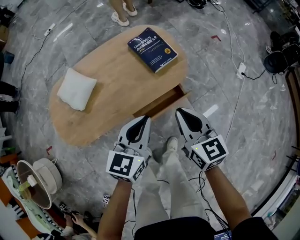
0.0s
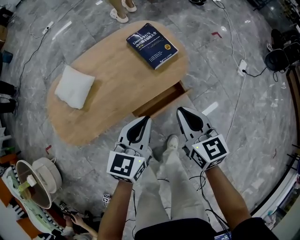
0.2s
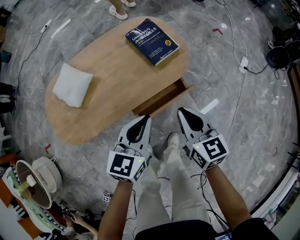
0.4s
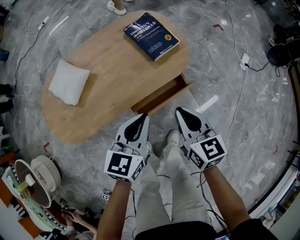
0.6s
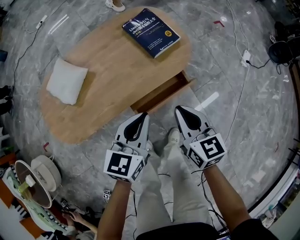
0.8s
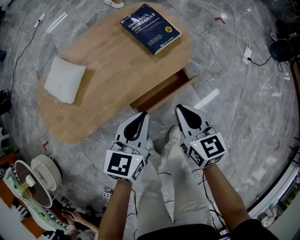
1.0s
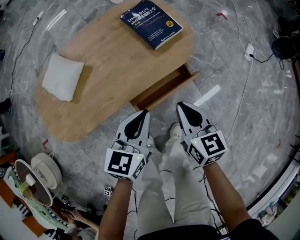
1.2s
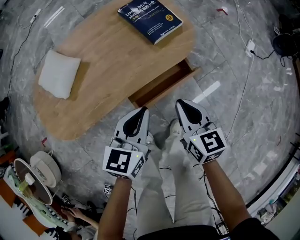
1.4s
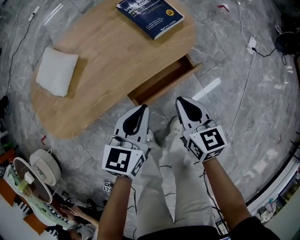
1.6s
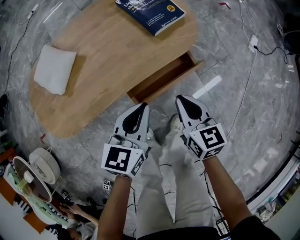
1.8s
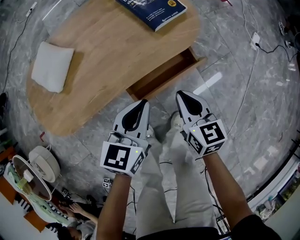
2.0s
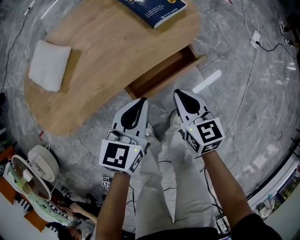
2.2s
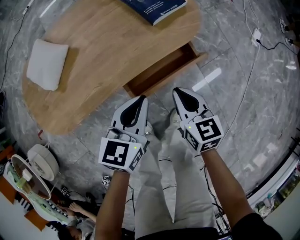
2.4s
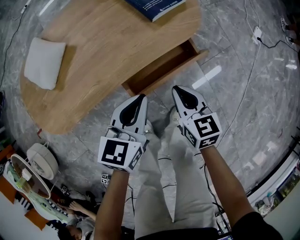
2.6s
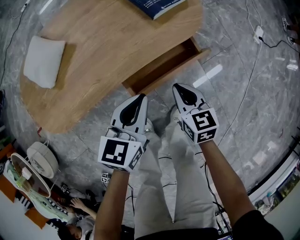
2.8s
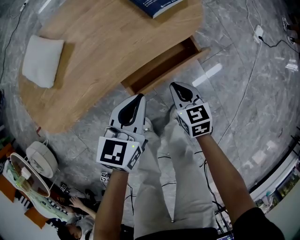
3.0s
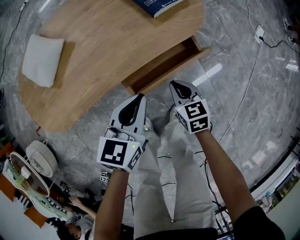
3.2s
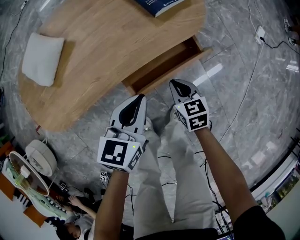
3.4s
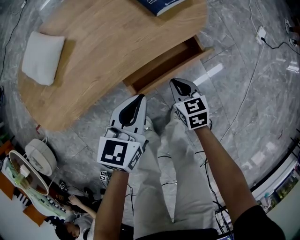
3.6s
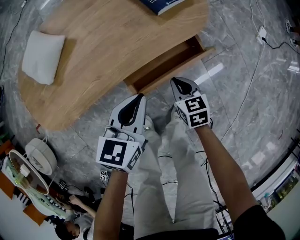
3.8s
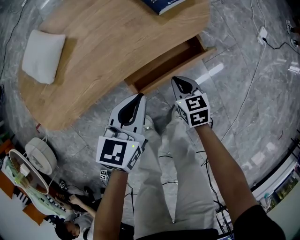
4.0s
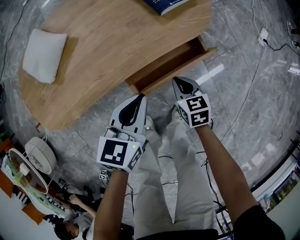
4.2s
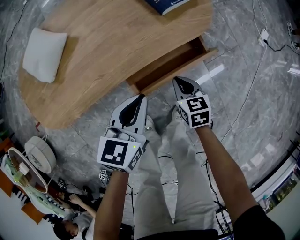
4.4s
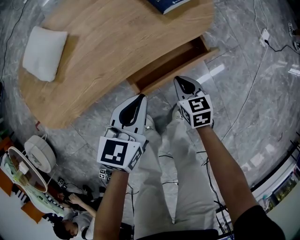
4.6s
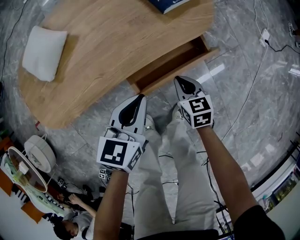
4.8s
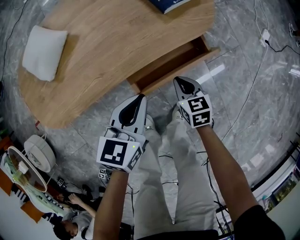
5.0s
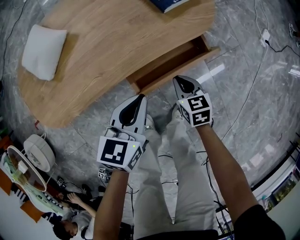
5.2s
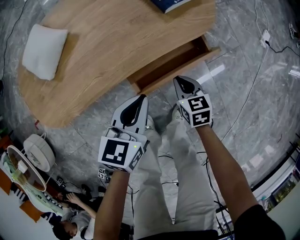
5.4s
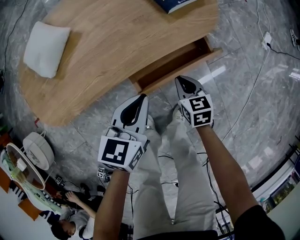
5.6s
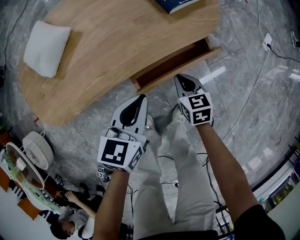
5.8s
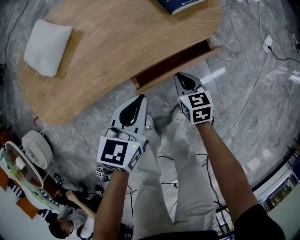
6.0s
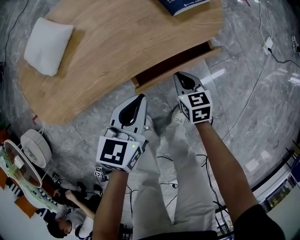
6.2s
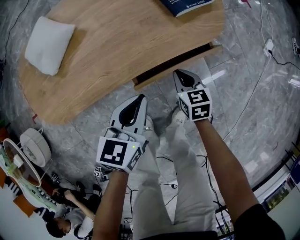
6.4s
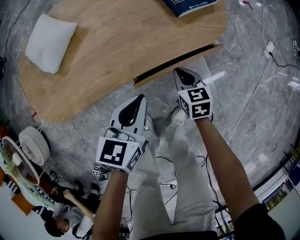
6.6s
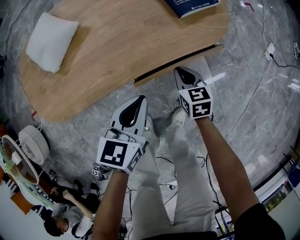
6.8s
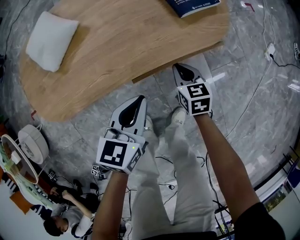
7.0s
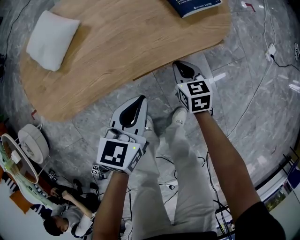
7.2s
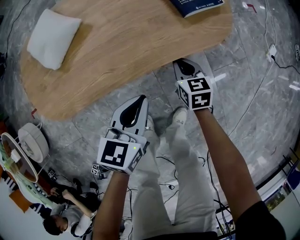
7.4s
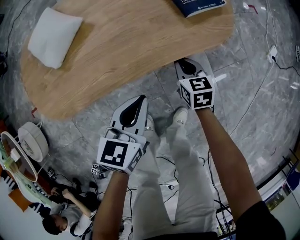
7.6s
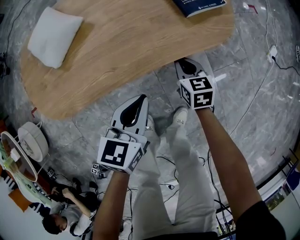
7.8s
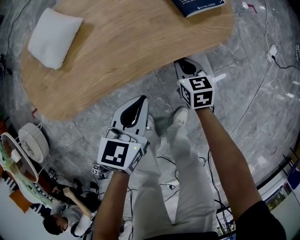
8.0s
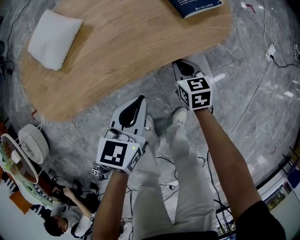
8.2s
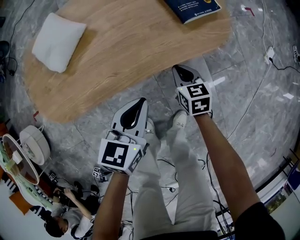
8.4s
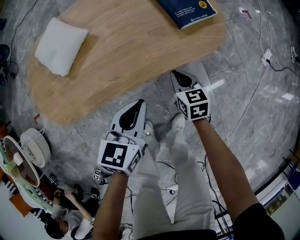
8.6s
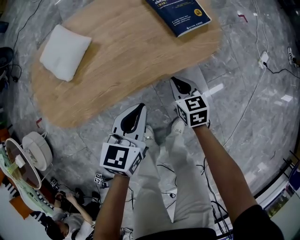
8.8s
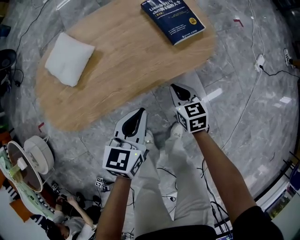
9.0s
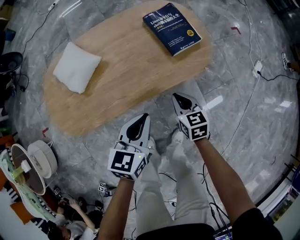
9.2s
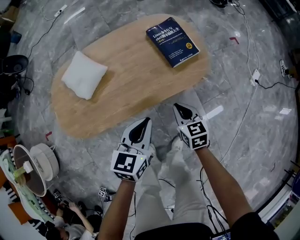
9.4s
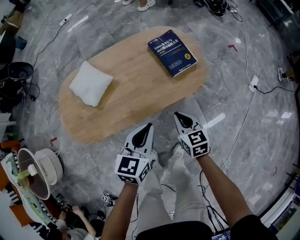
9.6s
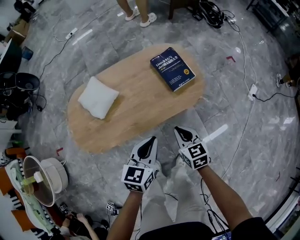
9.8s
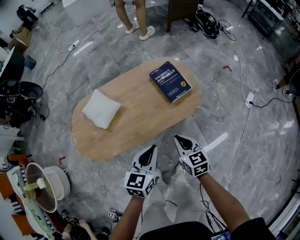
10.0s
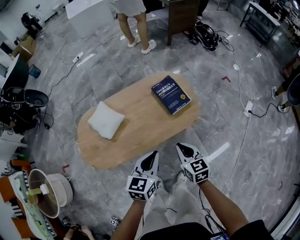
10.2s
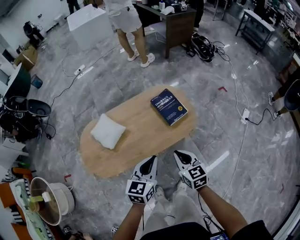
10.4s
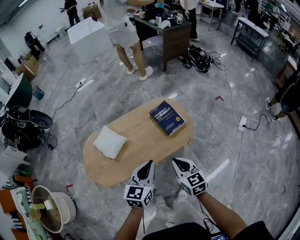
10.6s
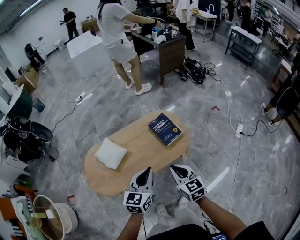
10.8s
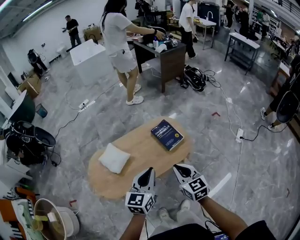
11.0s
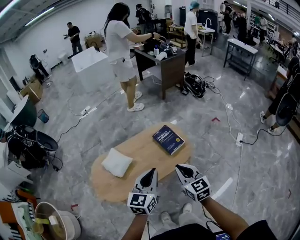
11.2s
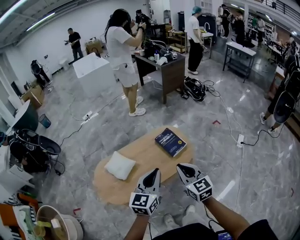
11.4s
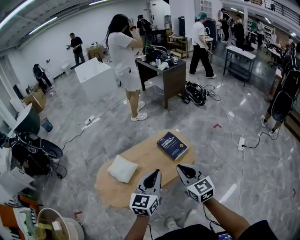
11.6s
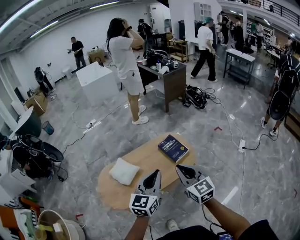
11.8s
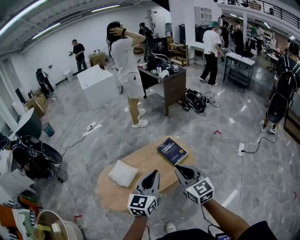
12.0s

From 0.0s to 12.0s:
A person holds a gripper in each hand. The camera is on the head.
From 0.0s to 1.6s: The grippers both shift downward by approximately 15 cm.
From 1.6s to 3.0s: The left gripper heads downward, covering roughly 5 cm; the right gripper travels downward by about 15 cm.
From 3.0s to 6.0s: The grippers move only a little.
From 6.0s to 7.6s: The right gripper is displaced forward by roughly 5 cm.
From 7.6s to 9.0s: The grippers both shift upward by some 10 cm.
From 9.0s to 10.4s: Both grippers travel together upward, some 25 cm.
From 10.4s to 12.0s: Both grippers travel together upward, about 20 cm. The right gripper turns by roughly 30 degrees; the left gripper rotates roughly 20 degrees.

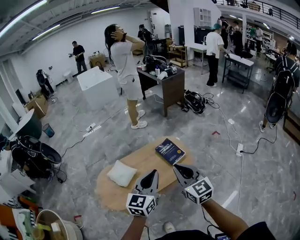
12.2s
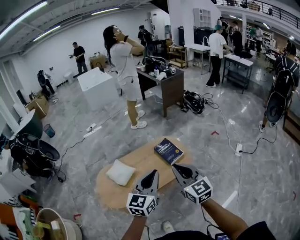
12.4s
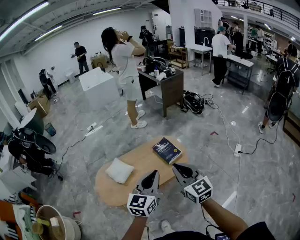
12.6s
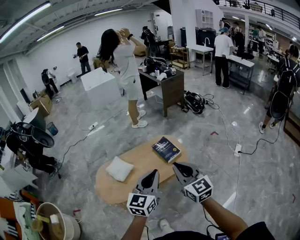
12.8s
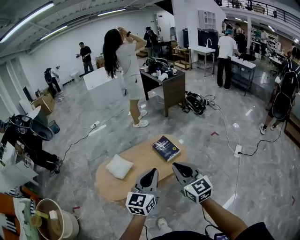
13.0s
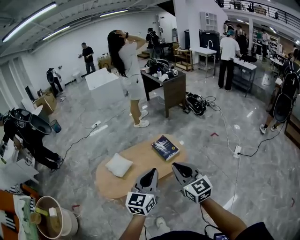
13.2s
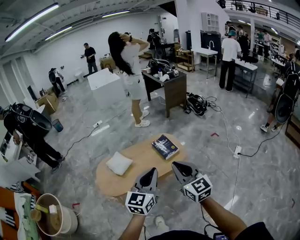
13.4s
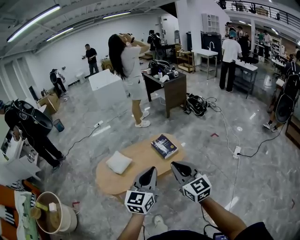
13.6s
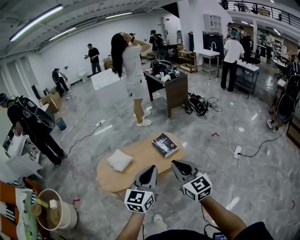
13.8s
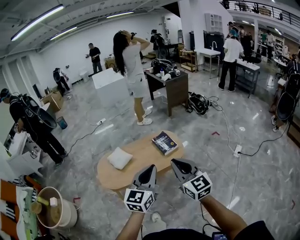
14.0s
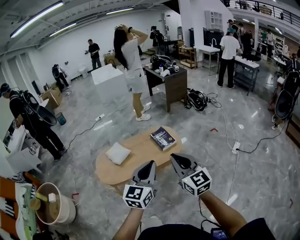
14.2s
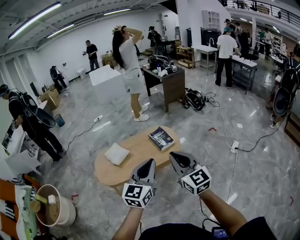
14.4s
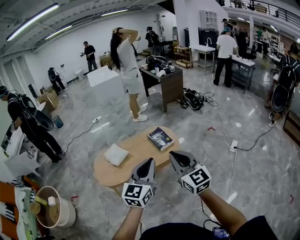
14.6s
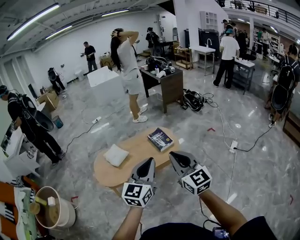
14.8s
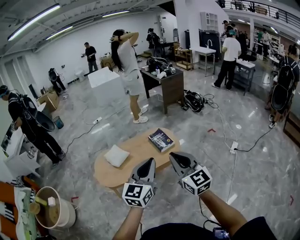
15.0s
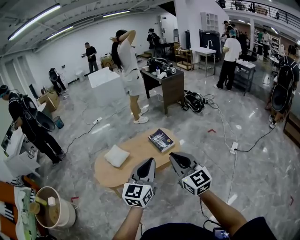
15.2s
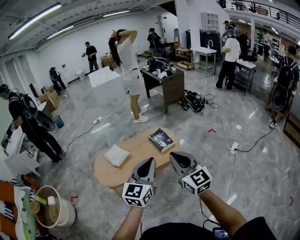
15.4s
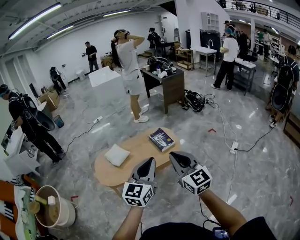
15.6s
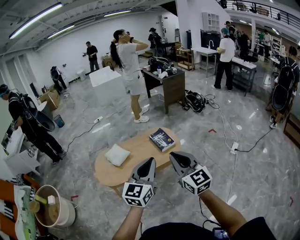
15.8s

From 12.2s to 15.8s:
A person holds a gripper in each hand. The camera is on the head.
From 12.2s to 14.0s: Both grippers travel together backward and to the right, about 20 cm.
From 14.0s to 15.8s: The grippers move only a little.

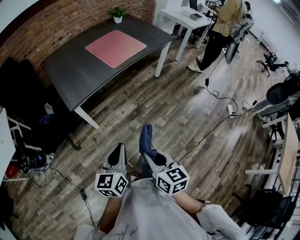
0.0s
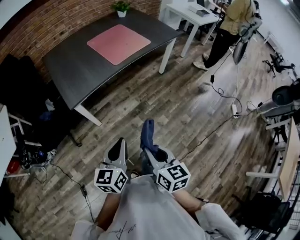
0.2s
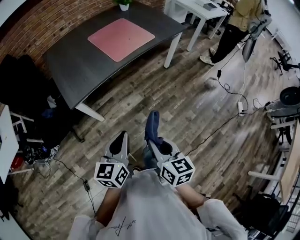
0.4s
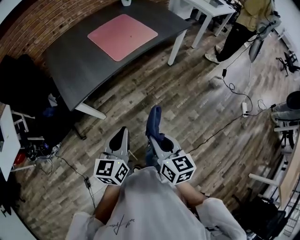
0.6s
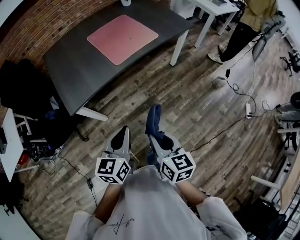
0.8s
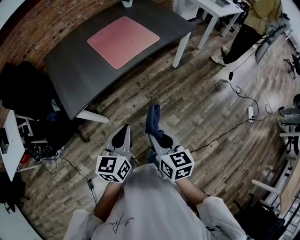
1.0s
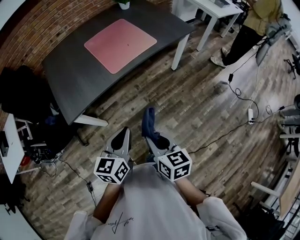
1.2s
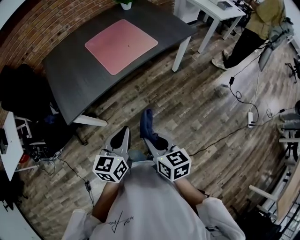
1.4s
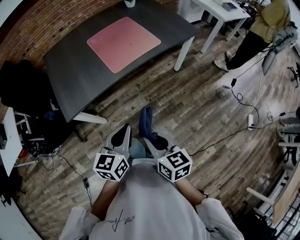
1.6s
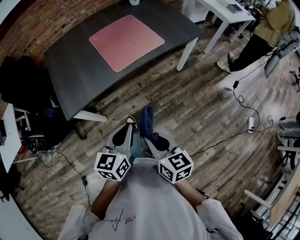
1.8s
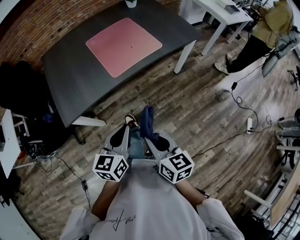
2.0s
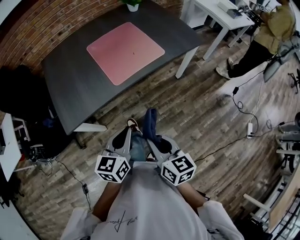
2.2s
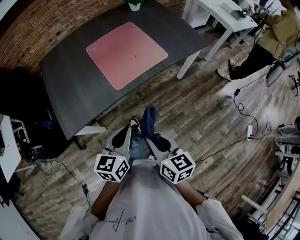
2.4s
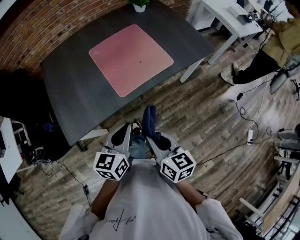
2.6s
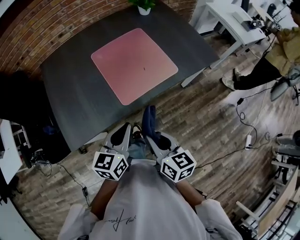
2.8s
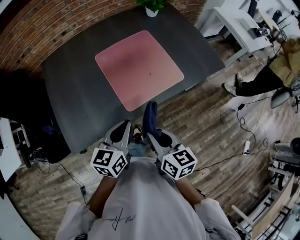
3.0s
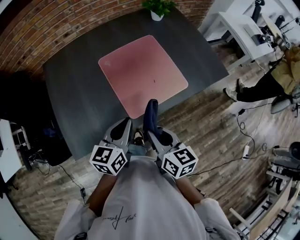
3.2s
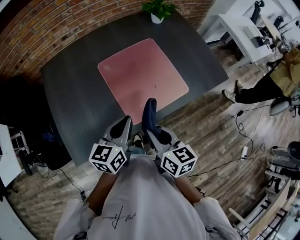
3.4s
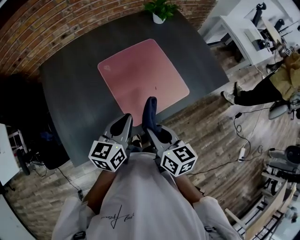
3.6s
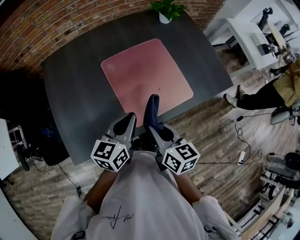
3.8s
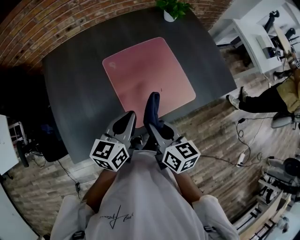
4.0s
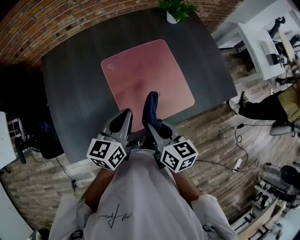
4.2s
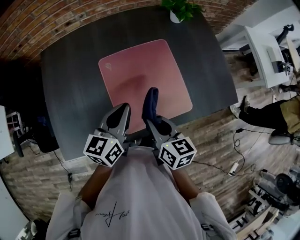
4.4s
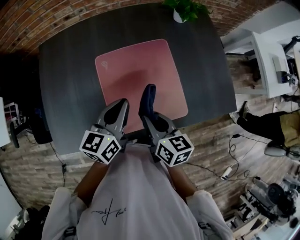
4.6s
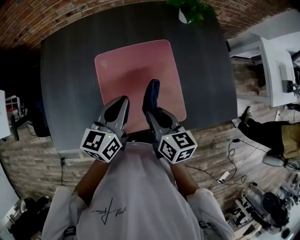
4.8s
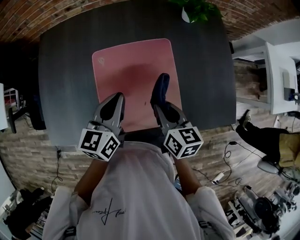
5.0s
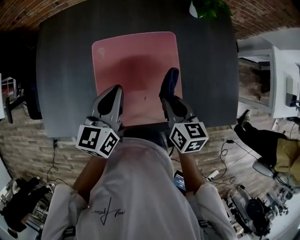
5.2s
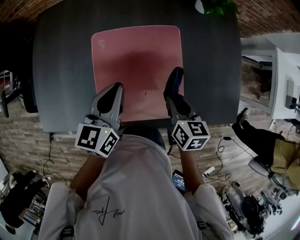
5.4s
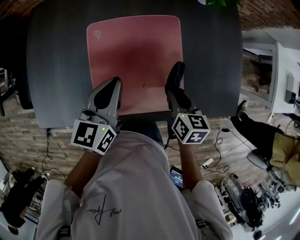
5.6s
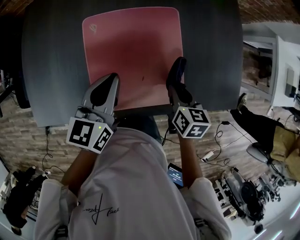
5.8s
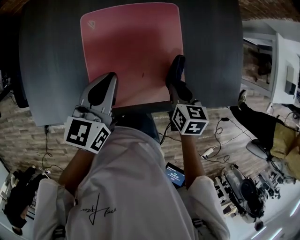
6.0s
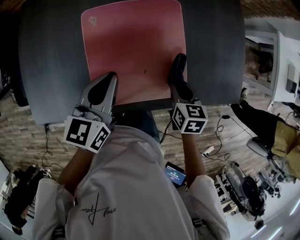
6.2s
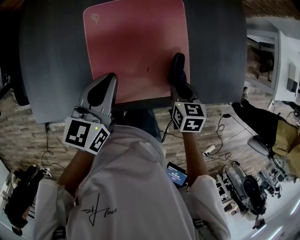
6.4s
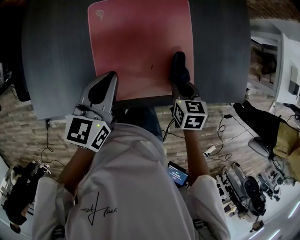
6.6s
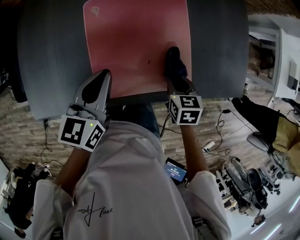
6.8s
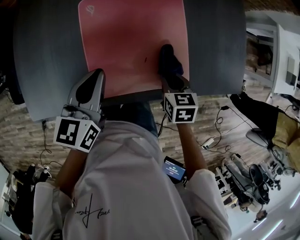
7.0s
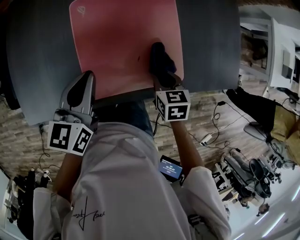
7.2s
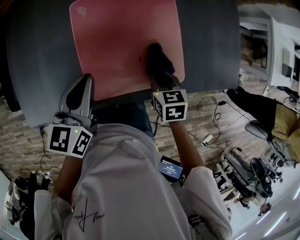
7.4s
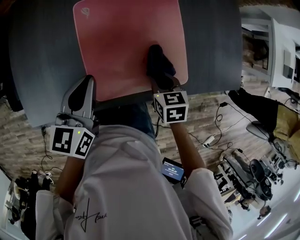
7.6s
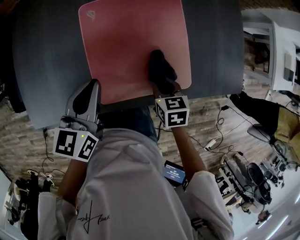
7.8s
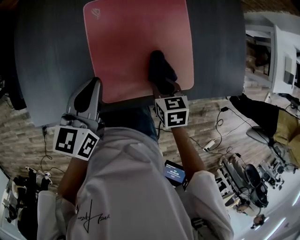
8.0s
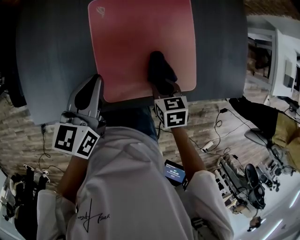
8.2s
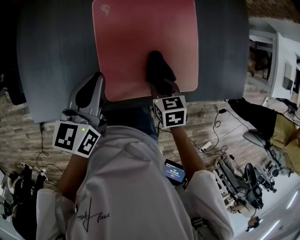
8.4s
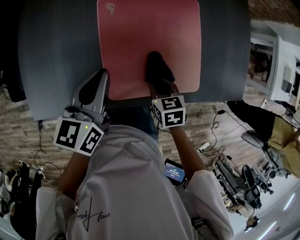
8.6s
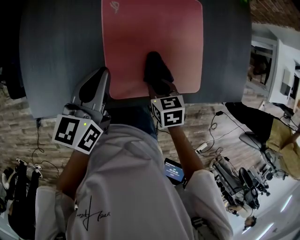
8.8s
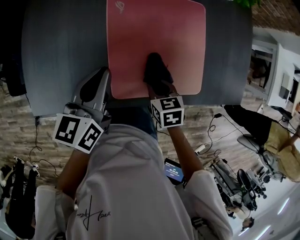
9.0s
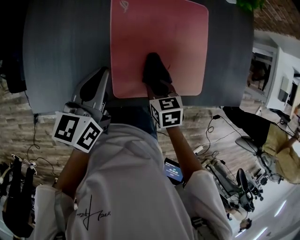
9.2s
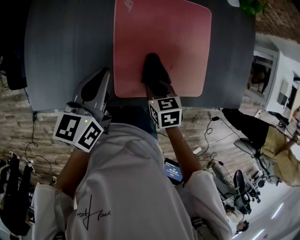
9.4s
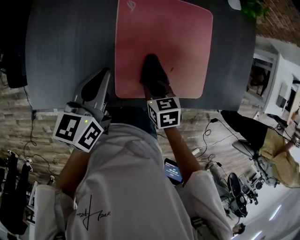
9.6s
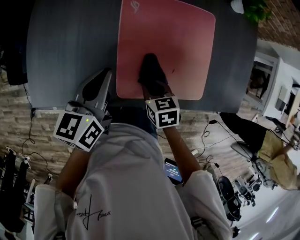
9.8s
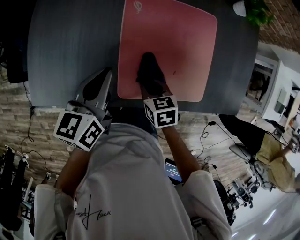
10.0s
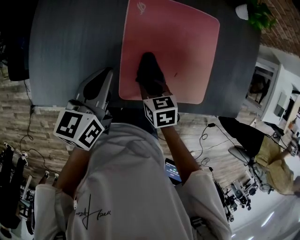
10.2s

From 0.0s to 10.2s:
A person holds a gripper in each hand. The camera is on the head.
From 0.0s to 1.4s: The grippers both shift forward and to the right by about 30 cm.
From 1.4s to 3.0s: The two grippers go roughly 30 cm forward.
From 3.0s to 4.4s: Both grippers travel together forward, roughly 20 cm.
From 4.4s to 5.8s: The right gripper goes approximately 20 cm to the right, downward and forward, and changes its angle by roughly 20 degrees. Meanwhile the left gripper goes about 5 cm forward.
From 5.8s to 7.2s: The right gripper goes some 10 cm downward and backward. Meanwhile the left gripper travels to the left and backward by some 10 cm.
From 7.2s to 8.8s: The right gripper moves to the left, about 10 cm. Meanwhile the left gripper heads to the left, covering about 5 cm.
From 8.8s to 10.2s: The right gripper heads to the left, covering approximately 10 cm, while the left gripper goes approximately 5 cm to the left.
